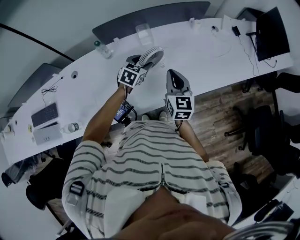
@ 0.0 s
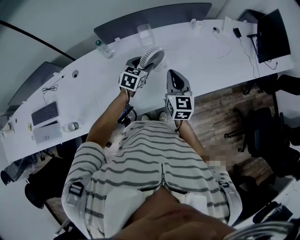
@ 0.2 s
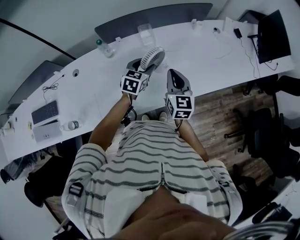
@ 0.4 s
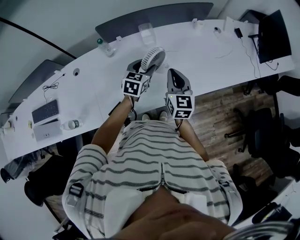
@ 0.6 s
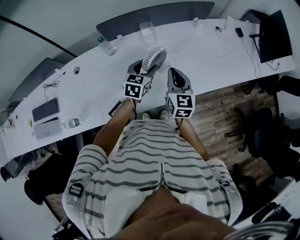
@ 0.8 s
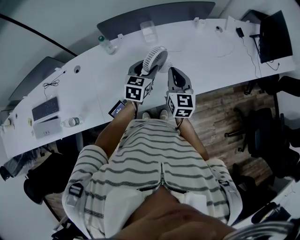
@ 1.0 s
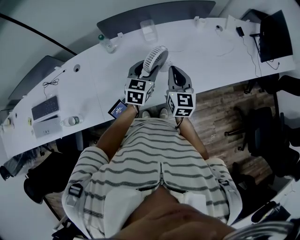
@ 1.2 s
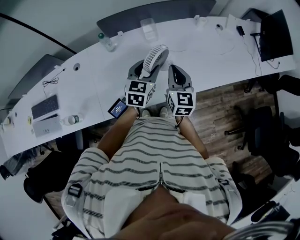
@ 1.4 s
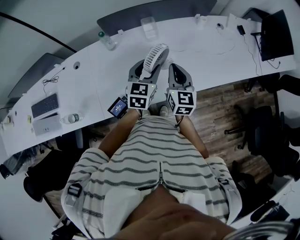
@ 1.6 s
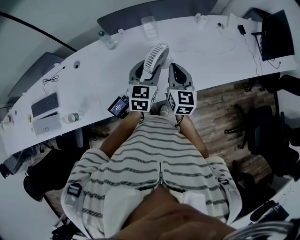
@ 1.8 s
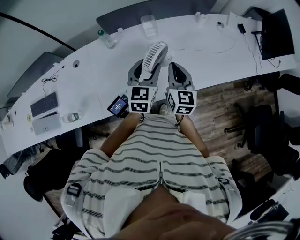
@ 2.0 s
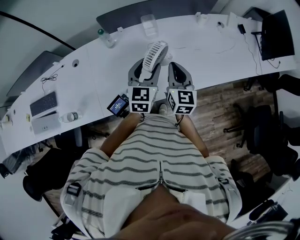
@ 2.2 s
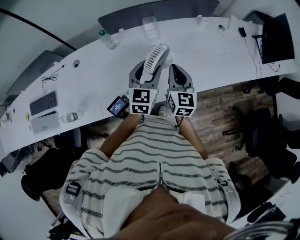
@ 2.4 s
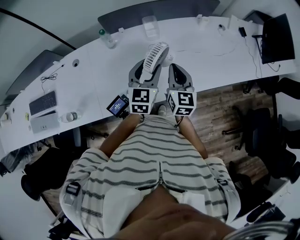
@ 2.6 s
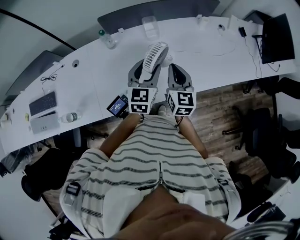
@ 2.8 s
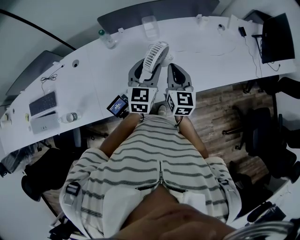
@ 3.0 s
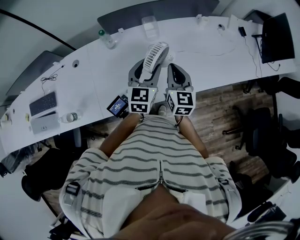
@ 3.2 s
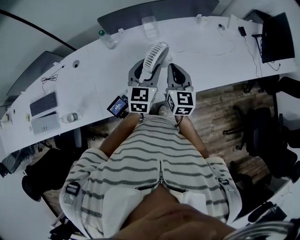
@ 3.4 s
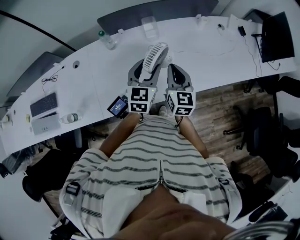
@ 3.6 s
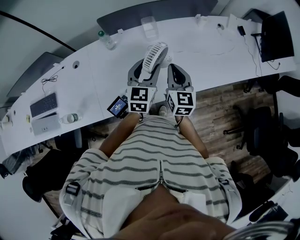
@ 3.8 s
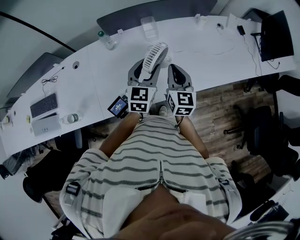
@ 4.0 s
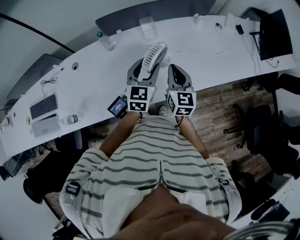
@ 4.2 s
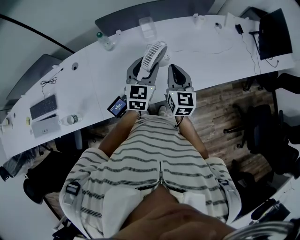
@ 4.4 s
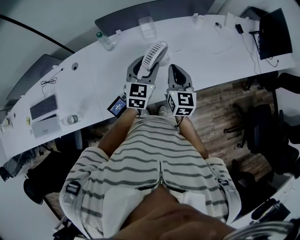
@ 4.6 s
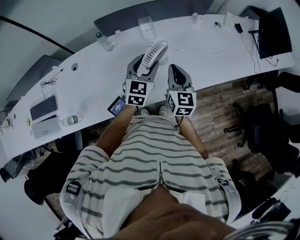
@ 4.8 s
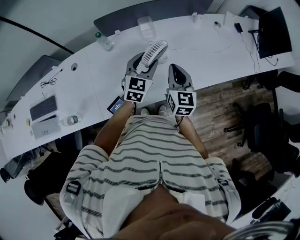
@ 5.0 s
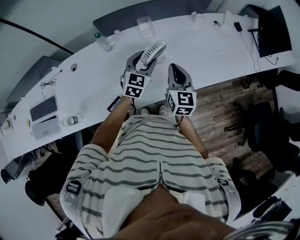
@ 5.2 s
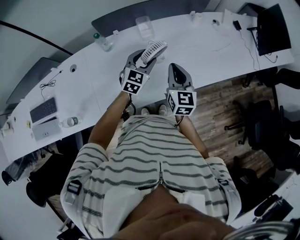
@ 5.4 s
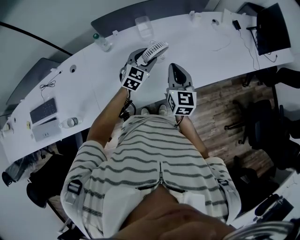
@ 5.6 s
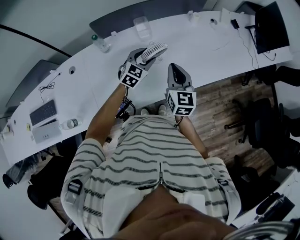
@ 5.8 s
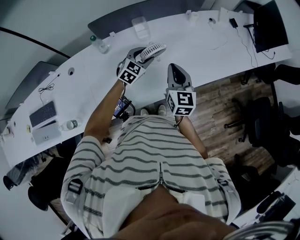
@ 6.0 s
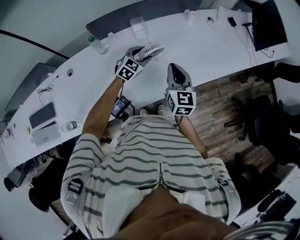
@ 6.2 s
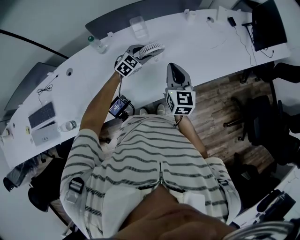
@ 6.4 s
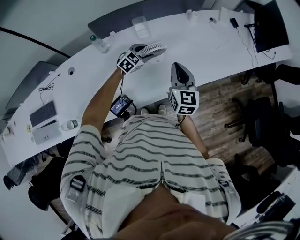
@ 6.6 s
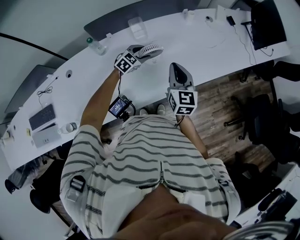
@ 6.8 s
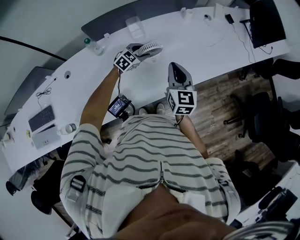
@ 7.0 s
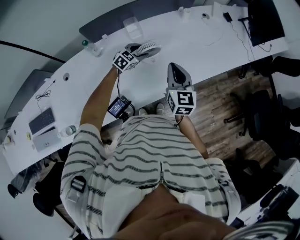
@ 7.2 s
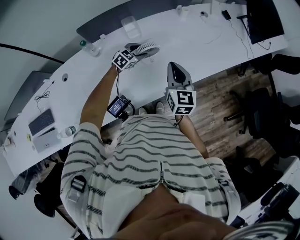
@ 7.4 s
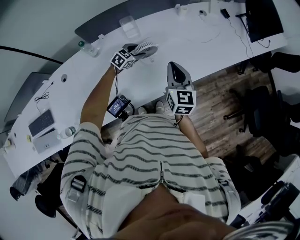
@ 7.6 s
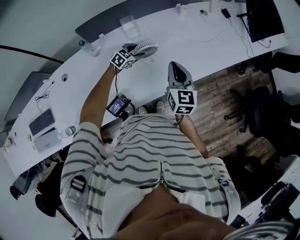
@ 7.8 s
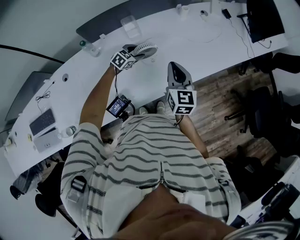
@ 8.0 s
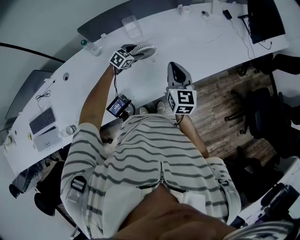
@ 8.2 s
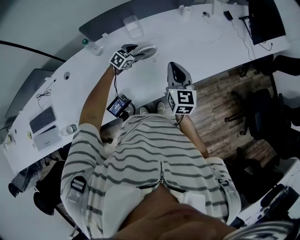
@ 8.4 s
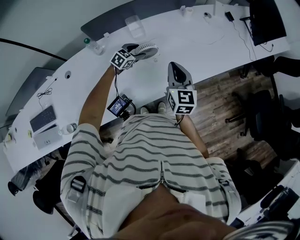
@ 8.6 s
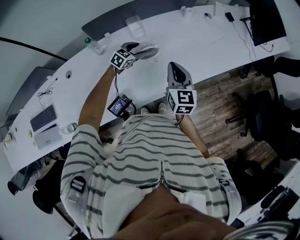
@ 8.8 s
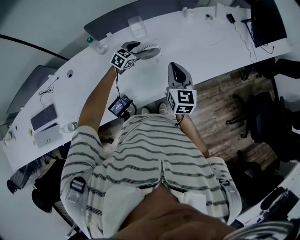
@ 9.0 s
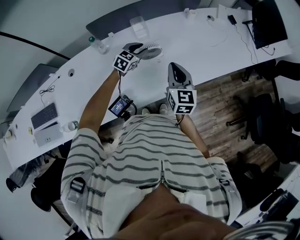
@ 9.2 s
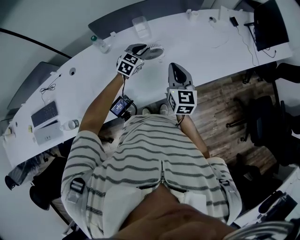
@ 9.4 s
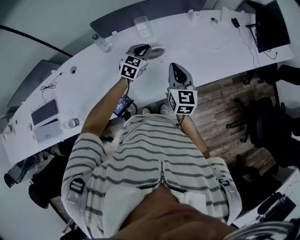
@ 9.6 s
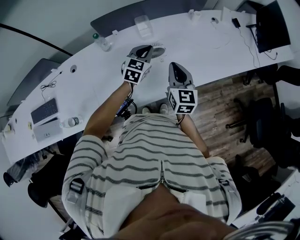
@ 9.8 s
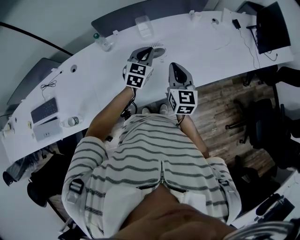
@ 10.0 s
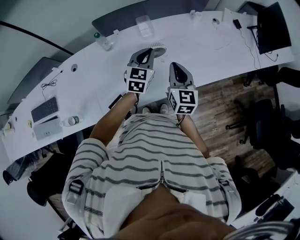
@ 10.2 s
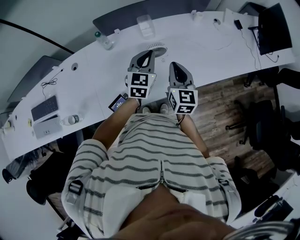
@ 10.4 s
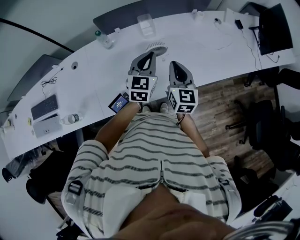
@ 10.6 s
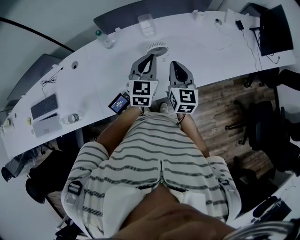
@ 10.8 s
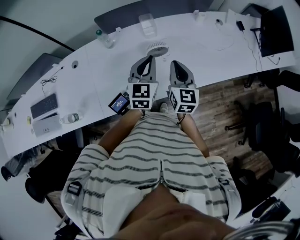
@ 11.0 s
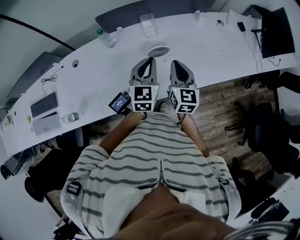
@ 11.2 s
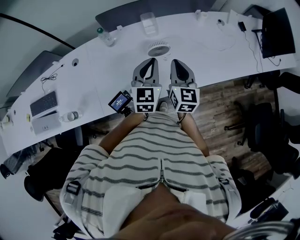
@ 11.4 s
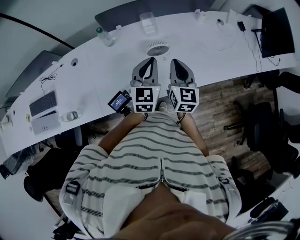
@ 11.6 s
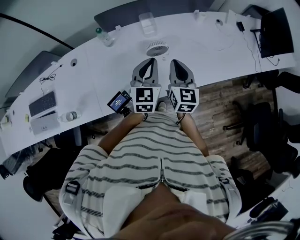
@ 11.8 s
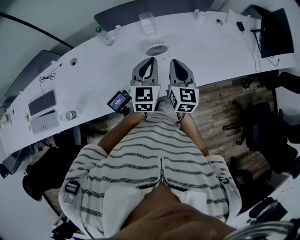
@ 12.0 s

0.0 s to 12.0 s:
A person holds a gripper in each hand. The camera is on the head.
0.0 to 1.6 s: The left gripper goes about 10 cm upward and backward, and changes its angle by about 20 degrees.
1.6 to 3.0 s: The grippers make only small movements.
3.0 to 4.4 s: The two grippers keep their place.
4.4 to 6.0 s: The left gripper moves downward and forward, some 15 cm, and changes its angle by about 30 degrees.
6.0 to 7.6 s: The left gripper shifts some 10 cm downward and forward.
7.6 to 9.0 s: The left gripper goes some 5 cm upward.
9.0 to 10.4 s: The left gripper is displaced upward and backward by some 15 cm, rotates some 40 degrees, and closes.
10.4 to 12.0 s: There are only small adjustments of the grippers.

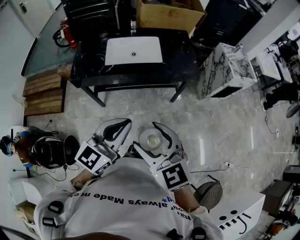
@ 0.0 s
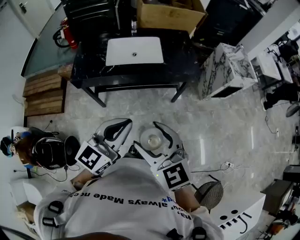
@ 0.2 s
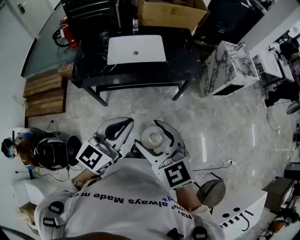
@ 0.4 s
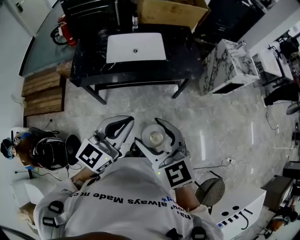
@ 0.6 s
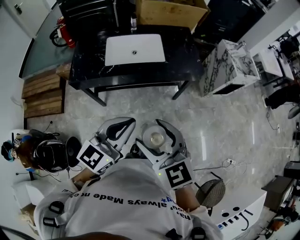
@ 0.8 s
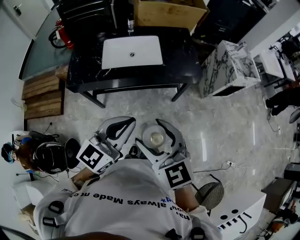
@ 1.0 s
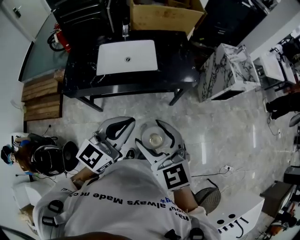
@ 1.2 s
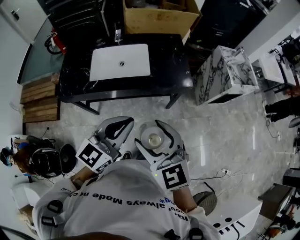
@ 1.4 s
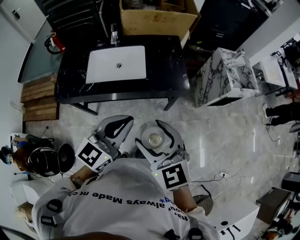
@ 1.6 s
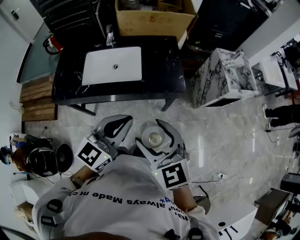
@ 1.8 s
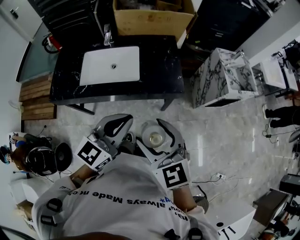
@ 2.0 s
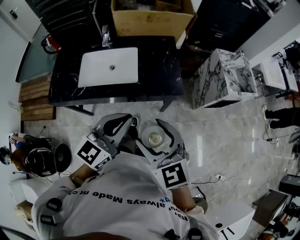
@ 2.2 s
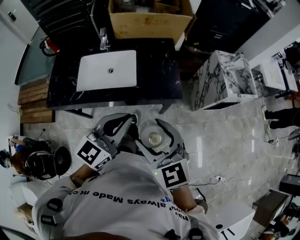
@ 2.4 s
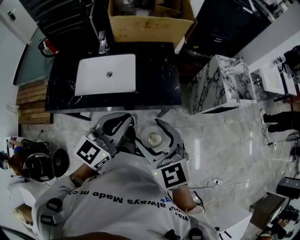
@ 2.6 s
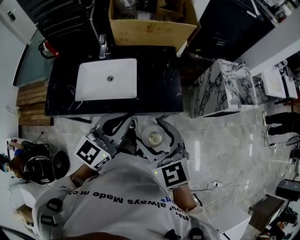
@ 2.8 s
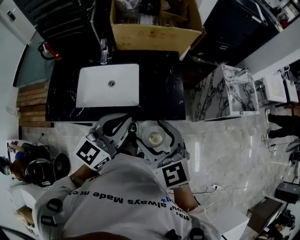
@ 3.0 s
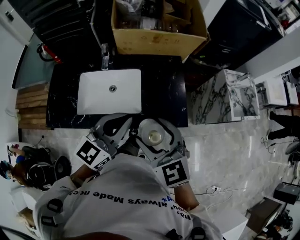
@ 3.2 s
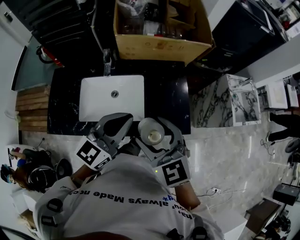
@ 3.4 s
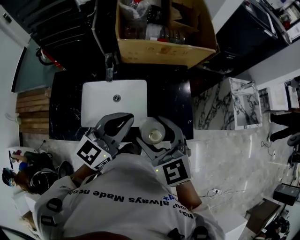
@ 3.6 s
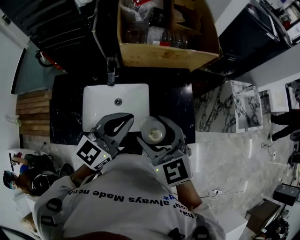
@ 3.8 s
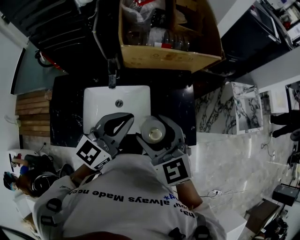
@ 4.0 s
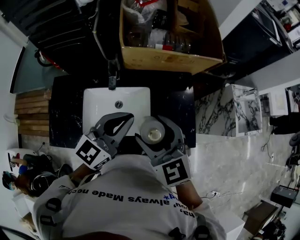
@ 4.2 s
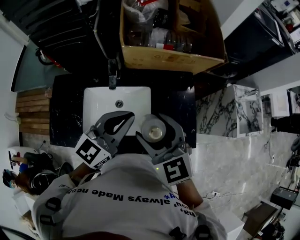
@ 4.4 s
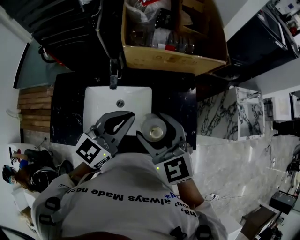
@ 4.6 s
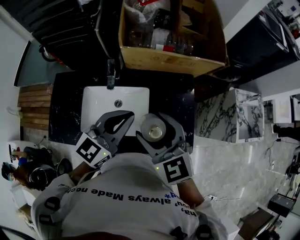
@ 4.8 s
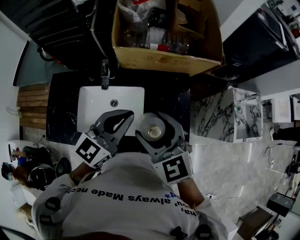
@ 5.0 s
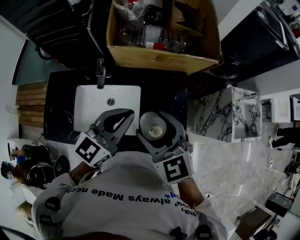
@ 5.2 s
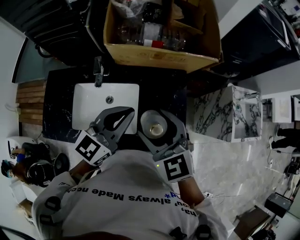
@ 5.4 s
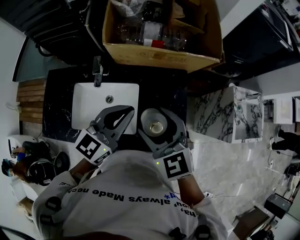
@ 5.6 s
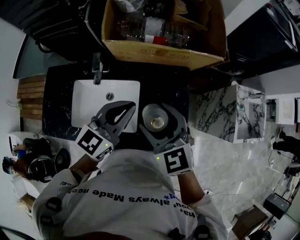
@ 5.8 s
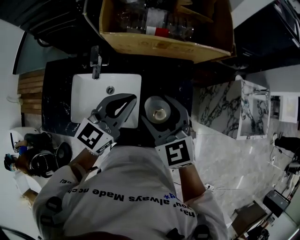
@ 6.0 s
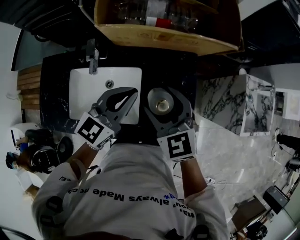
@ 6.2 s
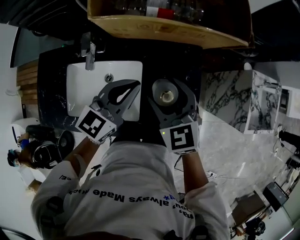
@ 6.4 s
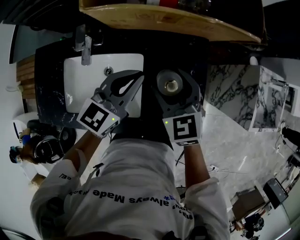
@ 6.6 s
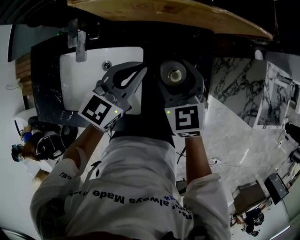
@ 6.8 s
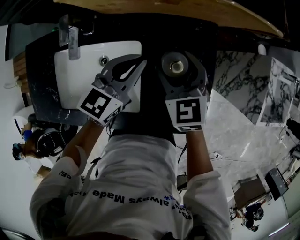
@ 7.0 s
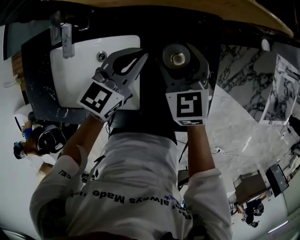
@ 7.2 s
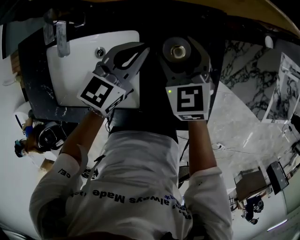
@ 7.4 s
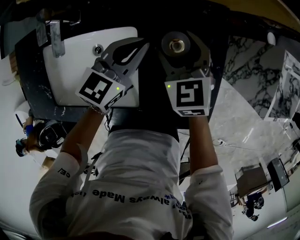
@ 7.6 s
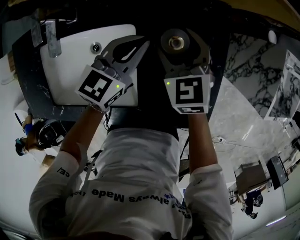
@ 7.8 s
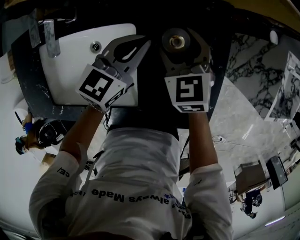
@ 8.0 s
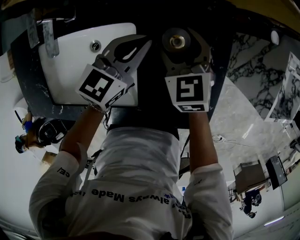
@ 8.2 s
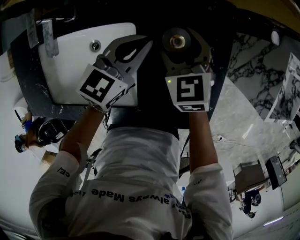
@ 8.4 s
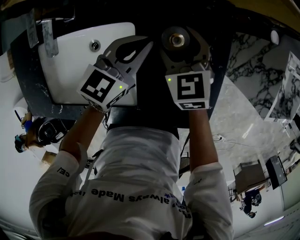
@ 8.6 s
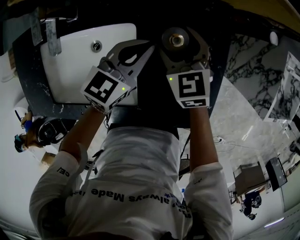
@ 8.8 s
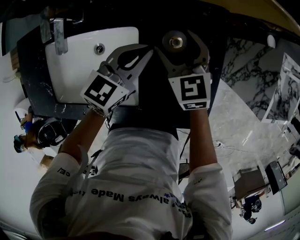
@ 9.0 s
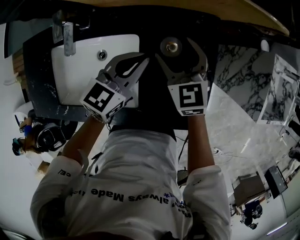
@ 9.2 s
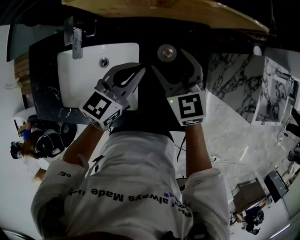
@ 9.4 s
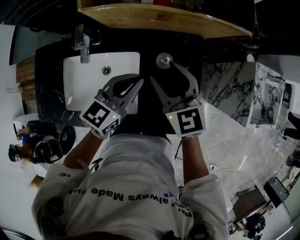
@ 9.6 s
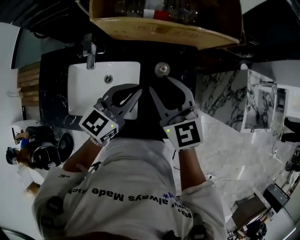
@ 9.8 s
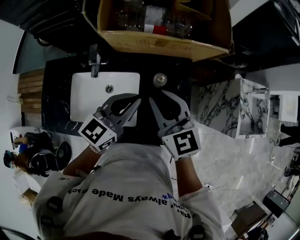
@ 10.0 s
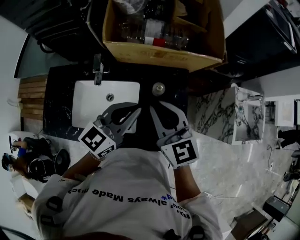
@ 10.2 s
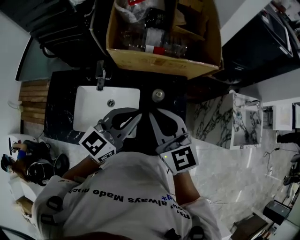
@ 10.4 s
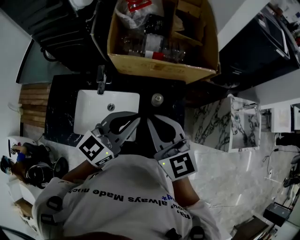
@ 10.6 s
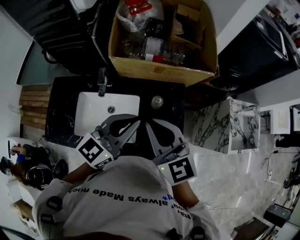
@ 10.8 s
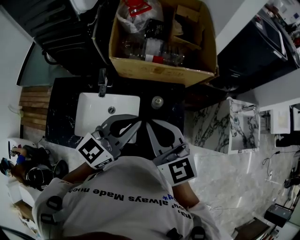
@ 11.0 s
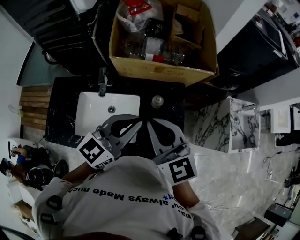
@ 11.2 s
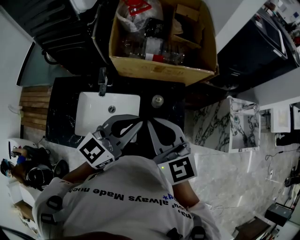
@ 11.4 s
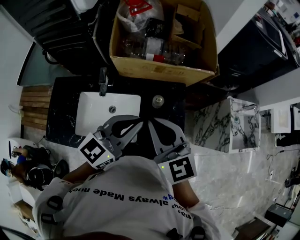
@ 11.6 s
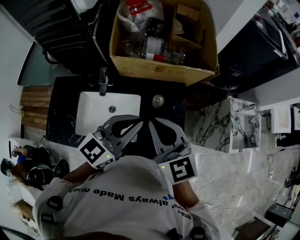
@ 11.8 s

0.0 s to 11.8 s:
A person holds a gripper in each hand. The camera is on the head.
0.0 to 1.4 s: Both grippers move forward and to the right, some 20 cm.
1.4 to 3.0 s: The two grippers go approximately 25 cm forward.
3.0 to 4.4 s: The two grippers go roughly 20 cm forward and to the left.
4.4 to 6.0 s: Both grippers move to the right, forward and downward, roughly 15 cm.
6.0 to 7.4 s: The grippers both shift downward and forward by approximately 25 cm.
7.4 to 8.8 s: The right gripper moves downward, approximately 5 cm.
8.8 to 10.4 s: Both grippers travel together upward, some 35 cm. The left gripper swivels roughly 20 degrees, while the right gripper swivels about 20 degrees, and closes.
10.4 to 11.8 s: The grippers stay close to where they were, moving slightly.
